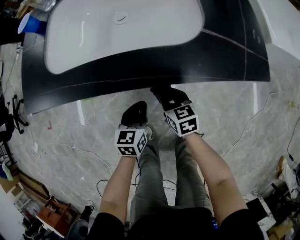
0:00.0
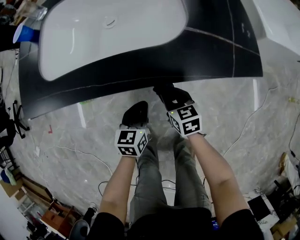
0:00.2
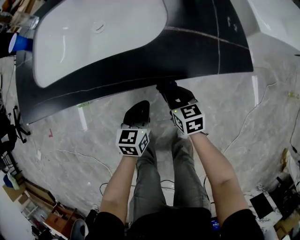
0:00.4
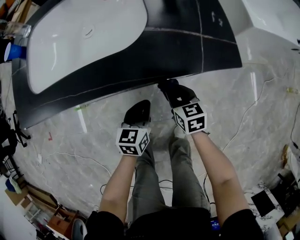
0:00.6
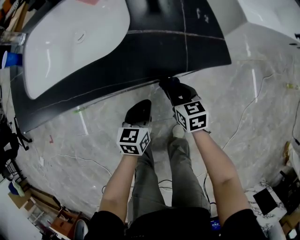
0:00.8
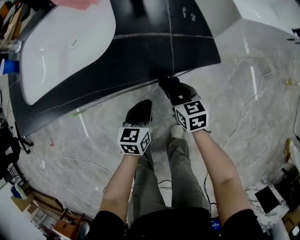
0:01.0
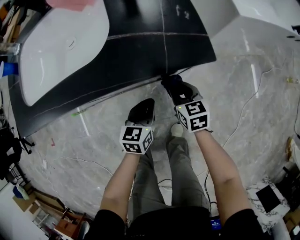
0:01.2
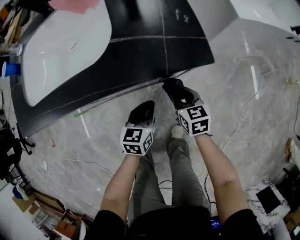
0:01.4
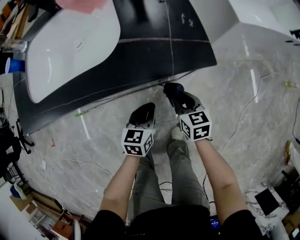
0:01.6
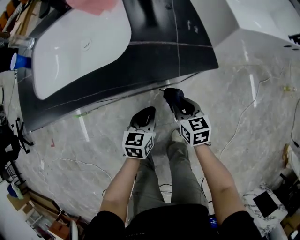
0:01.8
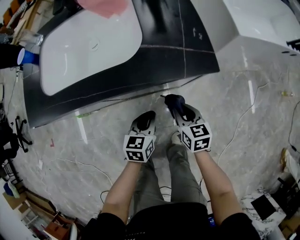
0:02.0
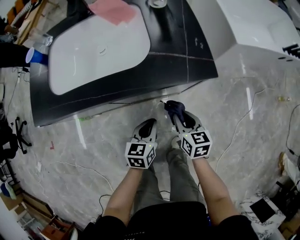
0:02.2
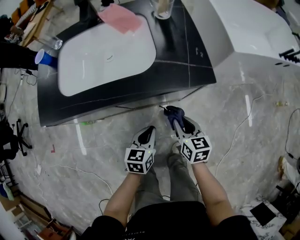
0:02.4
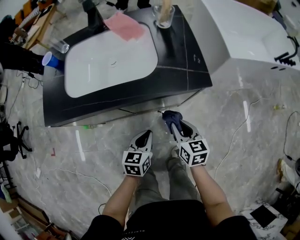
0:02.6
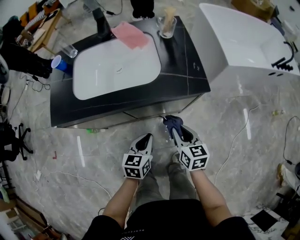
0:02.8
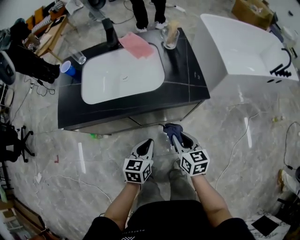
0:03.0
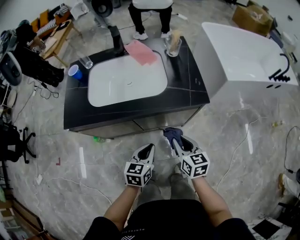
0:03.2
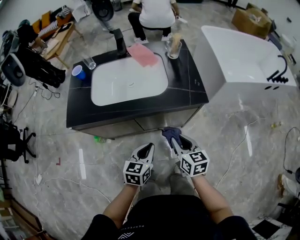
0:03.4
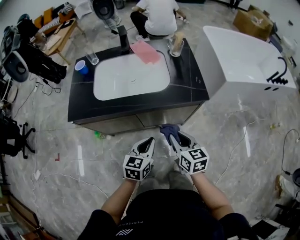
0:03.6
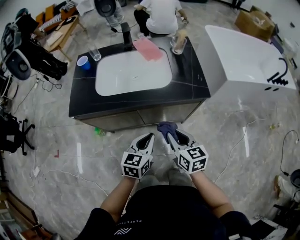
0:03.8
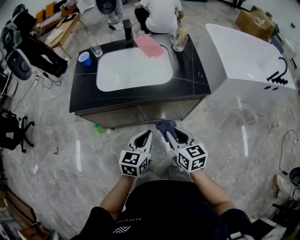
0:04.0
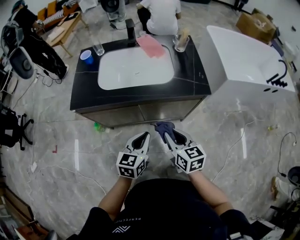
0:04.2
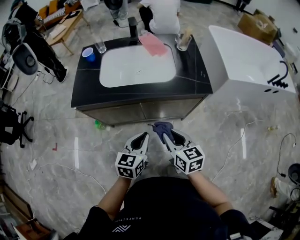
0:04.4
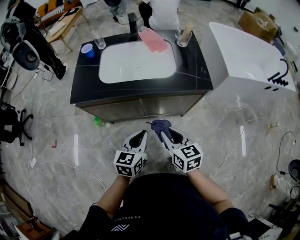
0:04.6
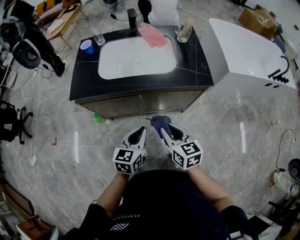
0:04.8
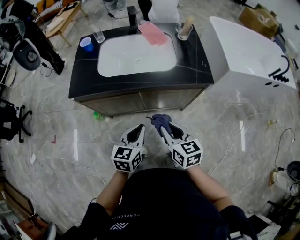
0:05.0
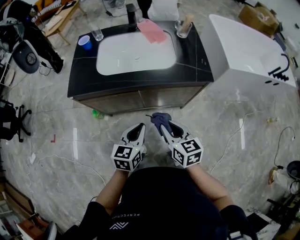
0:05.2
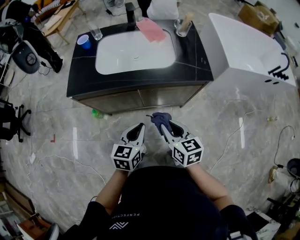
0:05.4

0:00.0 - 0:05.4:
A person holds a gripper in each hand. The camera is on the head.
0:00.0 - 0:01.4: The two grippers go some 20 cm to the right.
0:01.4 - 0:02.8: The right gripper shifts roughly 20 cm upward and backward, while the left gripper heads upward, to the left and backward, covering approximately 20 cm.
0:02.8 - 0:04.0: The left gripper travels upward by approximately 10 cm. The right gripper moves upward, to the left and backward, about 15 cm.
0:04.0 - 0:05.4: The left gripper changes place by approximately 5 cm.

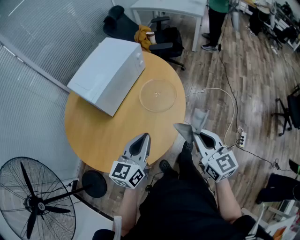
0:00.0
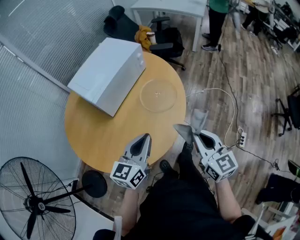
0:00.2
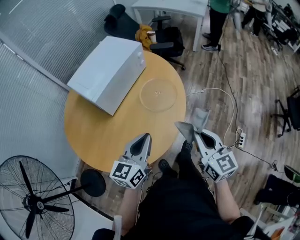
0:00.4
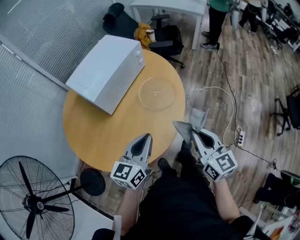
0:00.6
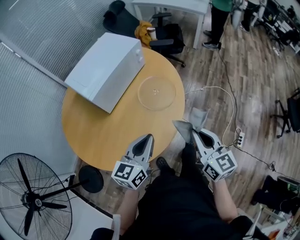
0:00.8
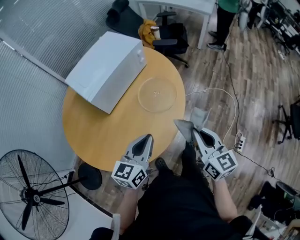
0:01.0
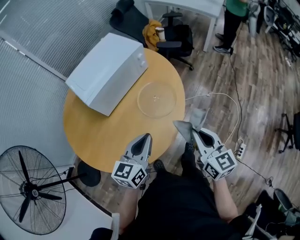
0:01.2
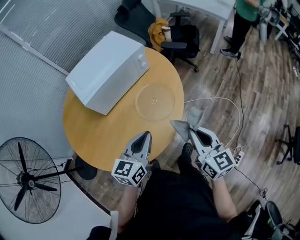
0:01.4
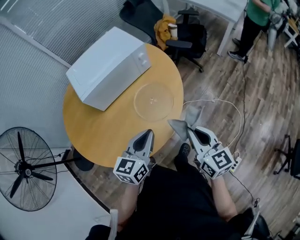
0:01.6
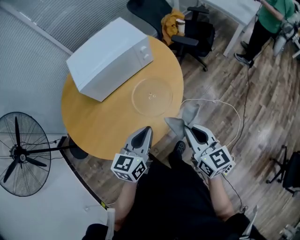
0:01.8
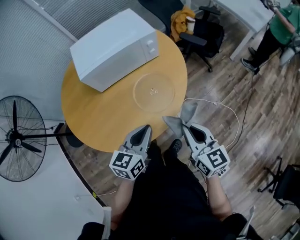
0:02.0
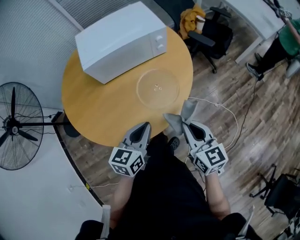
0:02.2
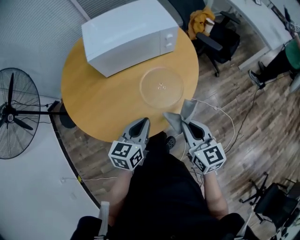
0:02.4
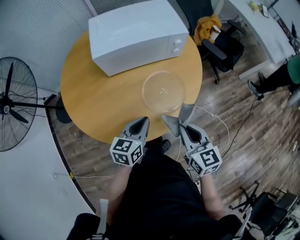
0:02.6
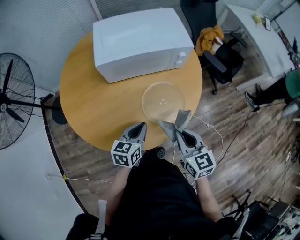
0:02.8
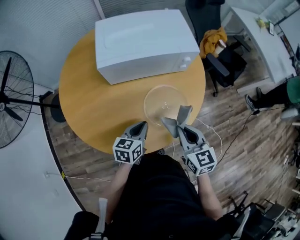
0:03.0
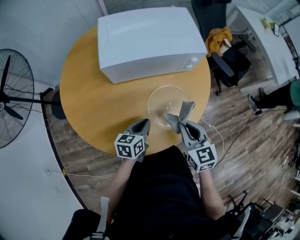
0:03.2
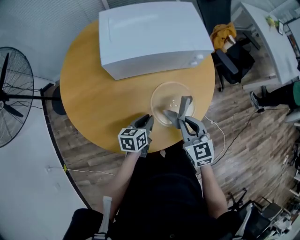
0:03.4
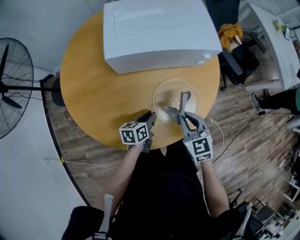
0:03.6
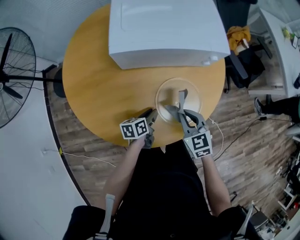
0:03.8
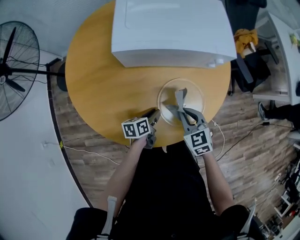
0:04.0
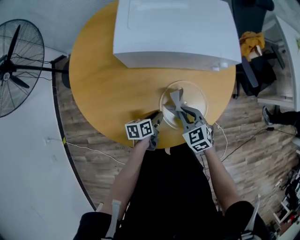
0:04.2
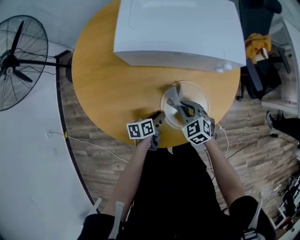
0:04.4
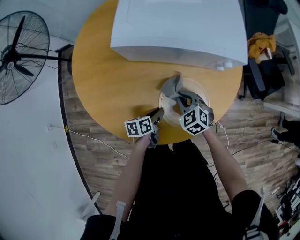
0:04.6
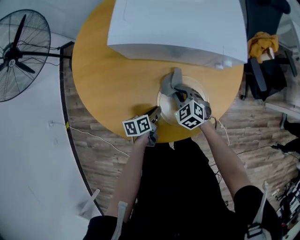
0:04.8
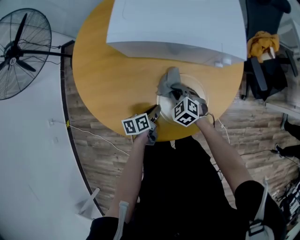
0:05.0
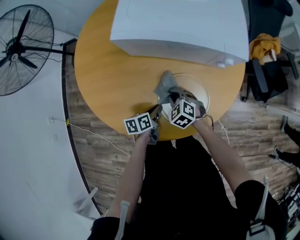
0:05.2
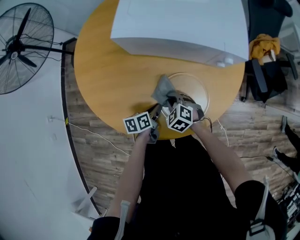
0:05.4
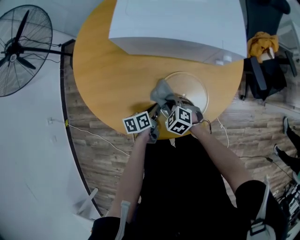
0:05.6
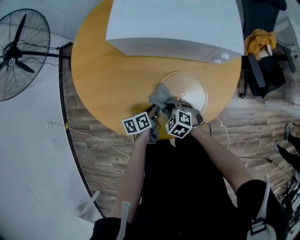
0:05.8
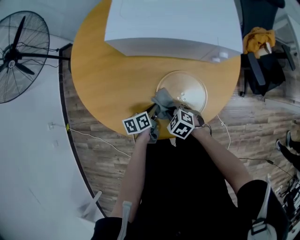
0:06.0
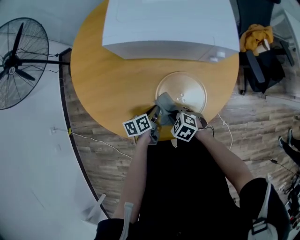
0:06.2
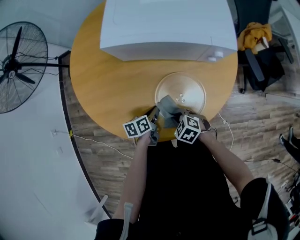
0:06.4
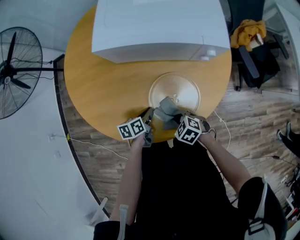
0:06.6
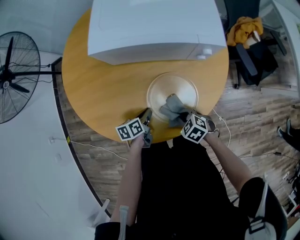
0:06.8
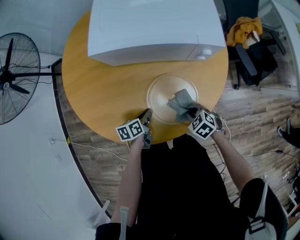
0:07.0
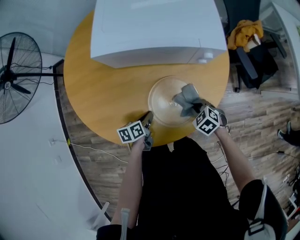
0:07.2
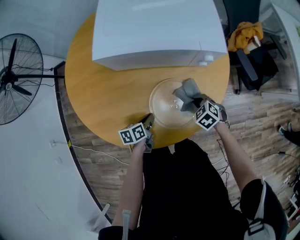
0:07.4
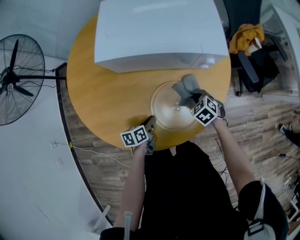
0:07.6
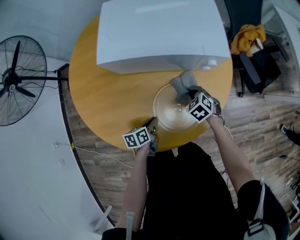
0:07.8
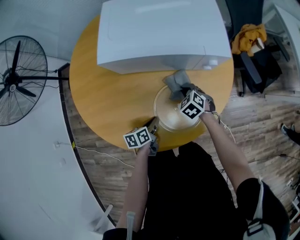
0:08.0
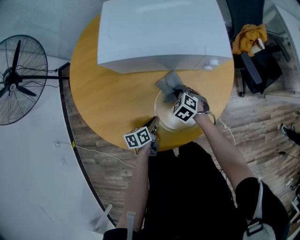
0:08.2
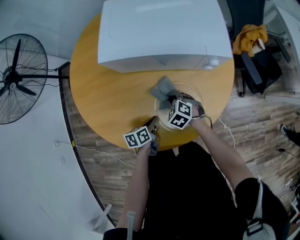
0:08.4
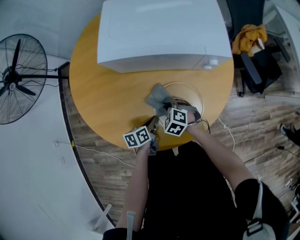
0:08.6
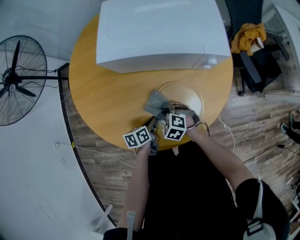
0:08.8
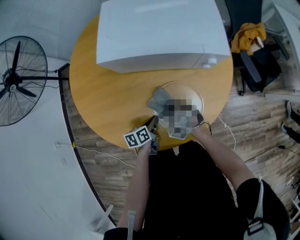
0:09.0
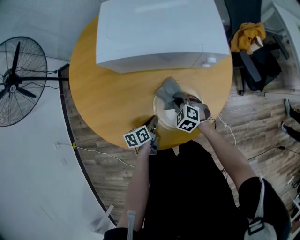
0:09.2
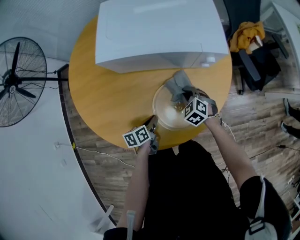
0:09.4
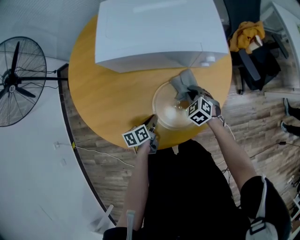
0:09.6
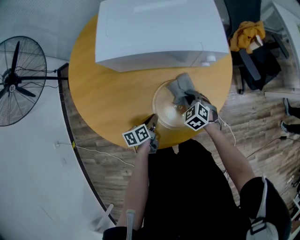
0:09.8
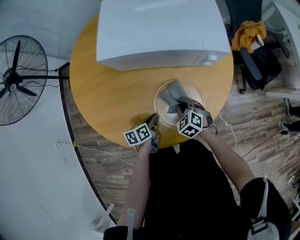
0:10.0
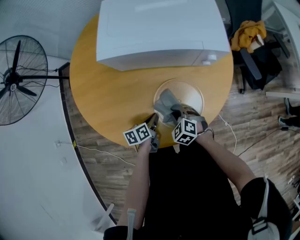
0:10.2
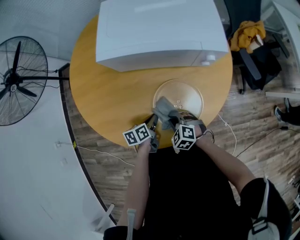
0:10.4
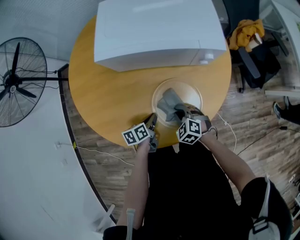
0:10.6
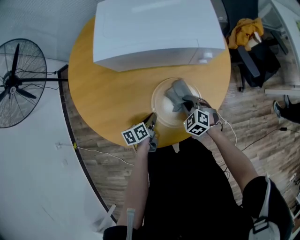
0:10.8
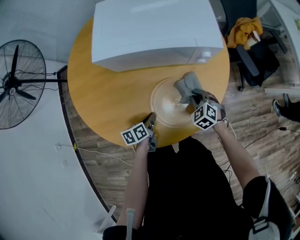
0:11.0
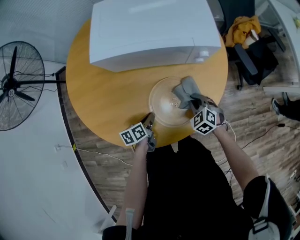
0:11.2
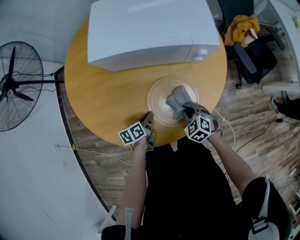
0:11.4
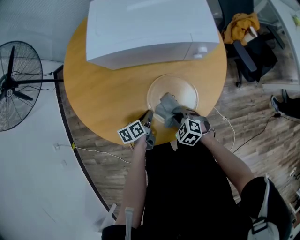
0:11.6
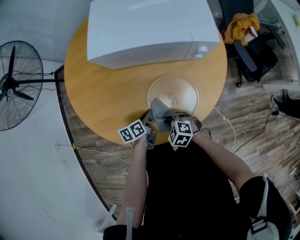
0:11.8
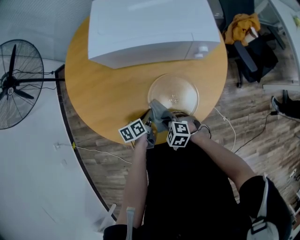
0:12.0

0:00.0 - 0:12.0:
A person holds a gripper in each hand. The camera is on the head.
0:00.0 - 0:01.6: The right gripper is displaced forward and to the right by about 20 cm, and changes its angle by about 20 degrees; the left gripper heads to the right and forward, covering approximately 15 cm.
0:01.6 - 0:03.0: The left gripper shifts about 20 cm downward, forward and to the left, and swivels roughly 30 degrees. The right gripper travels forward, downward and to the left by some 20 cm, and turns by roughly 30 degrees.
0:03.0 - 0:04.4: The right gripper moves downward and forward, approximately 20 cm, and rotates about 50 degrees, while the left gripper moves downward, about 15 cm, turns by some 40 degrees, and opens its fingers.
0:04.4 - 0:06.0: The right gripper heads backward and downward, covering approximately 10 cm, and turns by approximately 30 degrees.
0:06.0 - 0:07.6: The right gripper travels to the right and forward by about 20 cm, and turns by about 20 degrees.
0:07.6 - 0:09.0: The right gripper travels to the left by about 15 cm, and rotates roughly 20 degrees.
0:09.0 - 0:10.4: The right gripper goes some 5 cm backward.
0:10.4 - 0:12.0: The right gripper goes to the right and returns, some 15 cm each way.

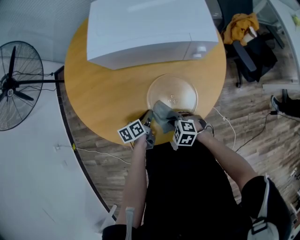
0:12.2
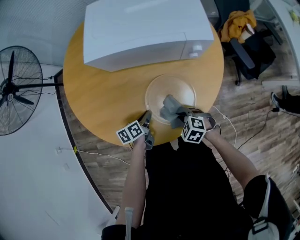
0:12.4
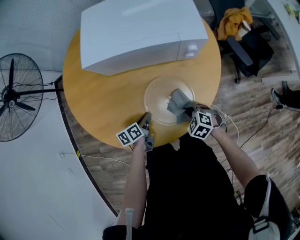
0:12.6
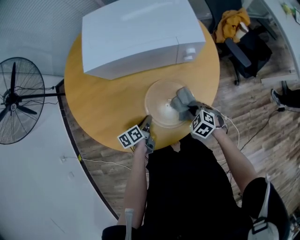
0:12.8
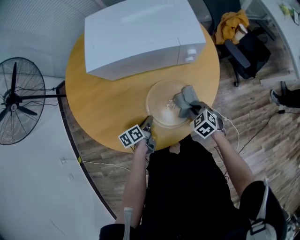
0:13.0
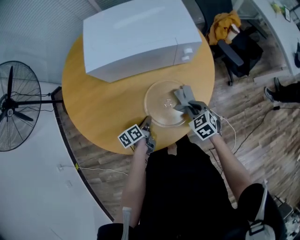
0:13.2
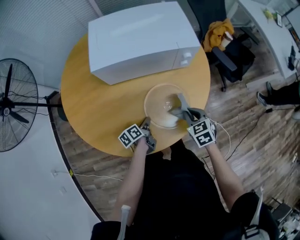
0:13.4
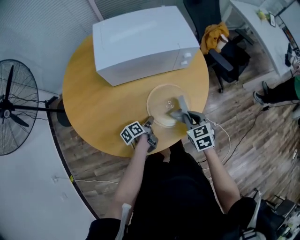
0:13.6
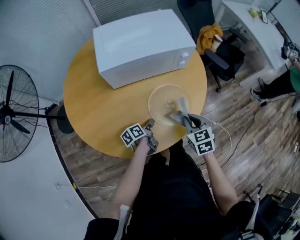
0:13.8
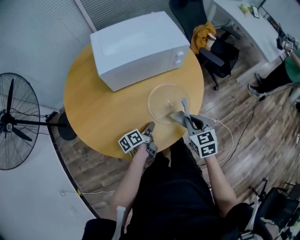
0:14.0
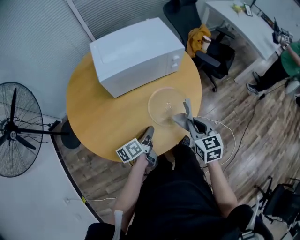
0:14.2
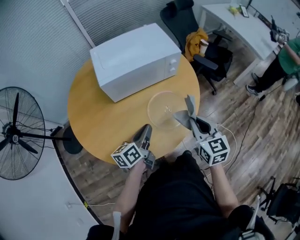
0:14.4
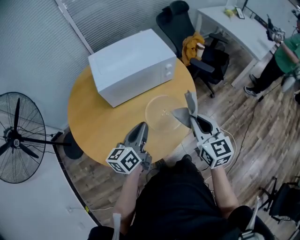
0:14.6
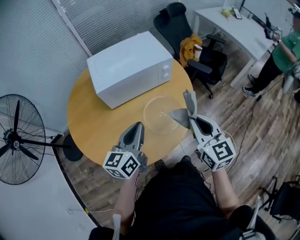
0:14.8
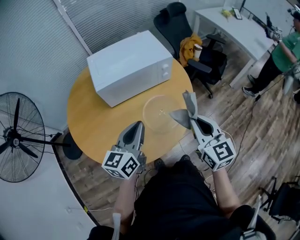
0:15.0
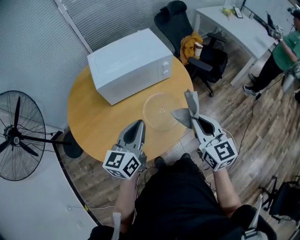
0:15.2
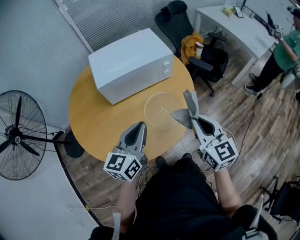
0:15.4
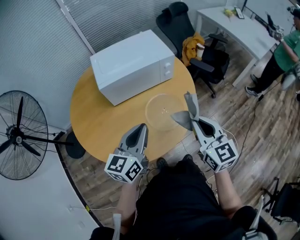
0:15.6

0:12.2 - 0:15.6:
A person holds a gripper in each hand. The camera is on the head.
0:12.2 - 0:13.8: The right gripper heads upward, covering approximately 15 cm, and rotates about 70 degrees.
0:13.8 - 0:15.6: The right gripper heads upward, covering some 20 cm, and tips its fingers upward by some 30 degrees. Meanwhile the left gripper shifts approximately 35 cm upward, twists about 60 degrees clockwise, seen from behind, and closes up.

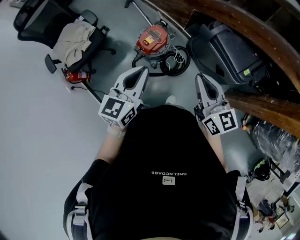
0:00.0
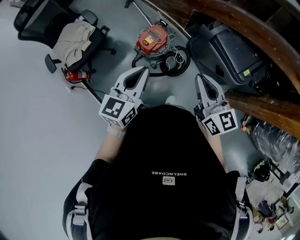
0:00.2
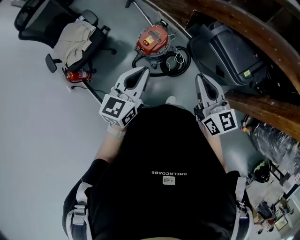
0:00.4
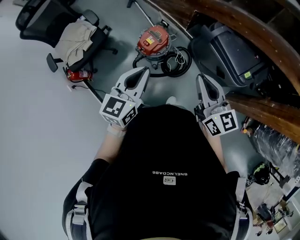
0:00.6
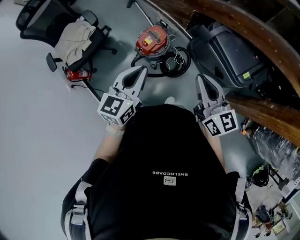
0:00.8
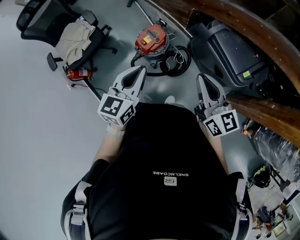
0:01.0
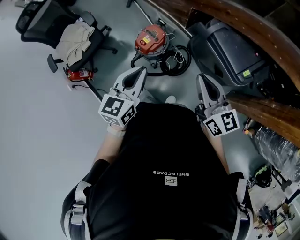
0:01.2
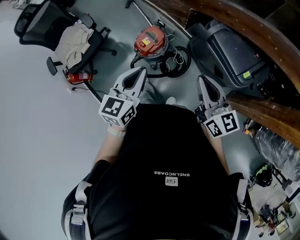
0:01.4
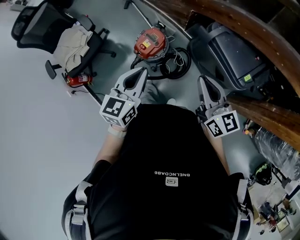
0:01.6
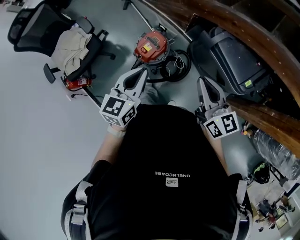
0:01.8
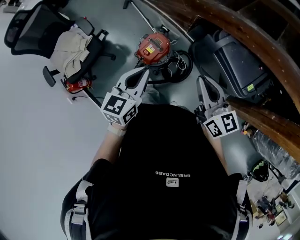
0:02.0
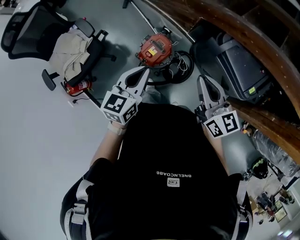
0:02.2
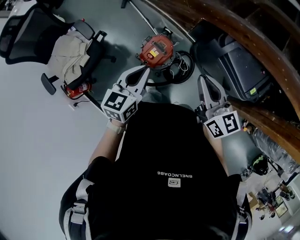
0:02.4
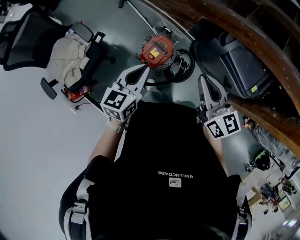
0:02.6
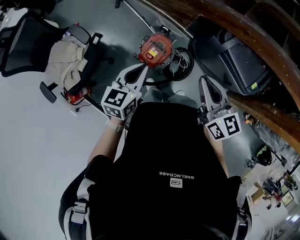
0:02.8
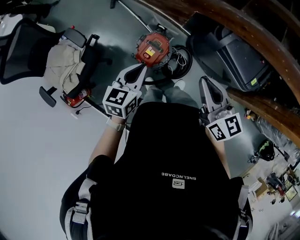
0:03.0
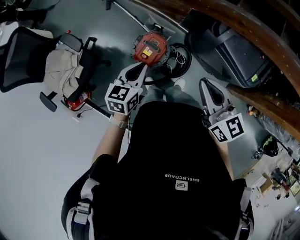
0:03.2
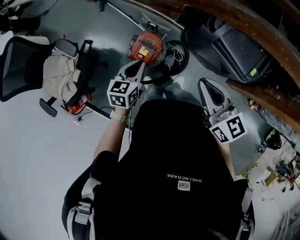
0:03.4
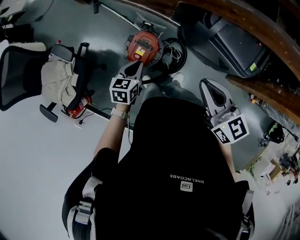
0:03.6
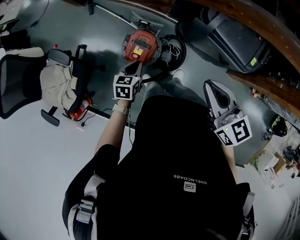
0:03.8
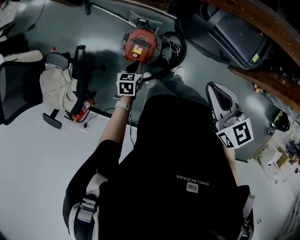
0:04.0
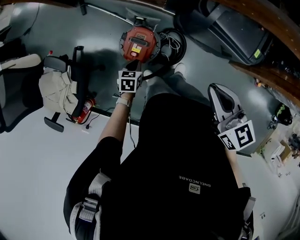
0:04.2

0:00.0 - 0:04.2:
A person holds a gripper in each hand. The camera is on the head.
0:00.0 - 0:01.4: Both grippers travel together to the right, some 10 cm.
0:01.4 - 0:02.8: The right gripper travels to the left and forward by roughly 30 cm; the left gripper moves forward and to the left, approximately 30 cm.
0:02.8 - 0:04.2: The right gripper heads to the right and downward, covering approximately 10 cm. The left gripper shifts about 30 cm downward, and tilts its fingers about 30 degrees downward.
